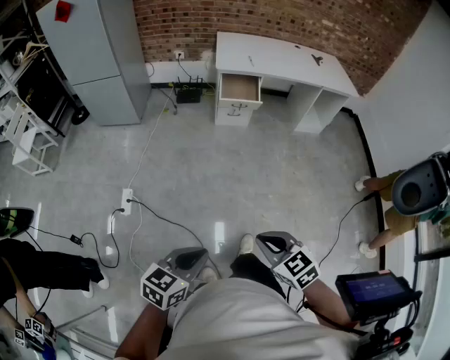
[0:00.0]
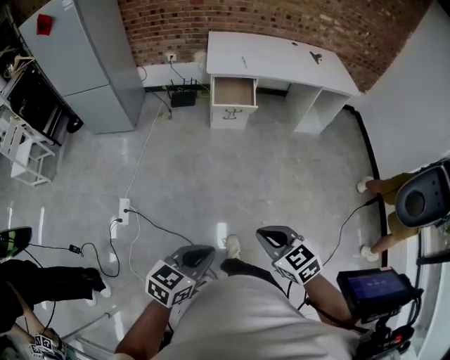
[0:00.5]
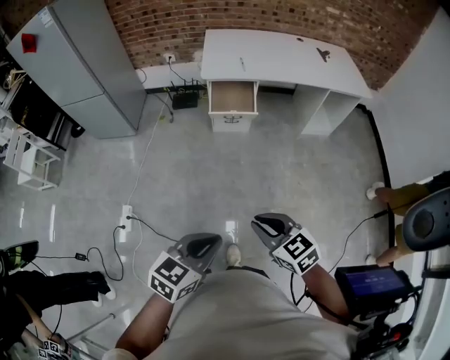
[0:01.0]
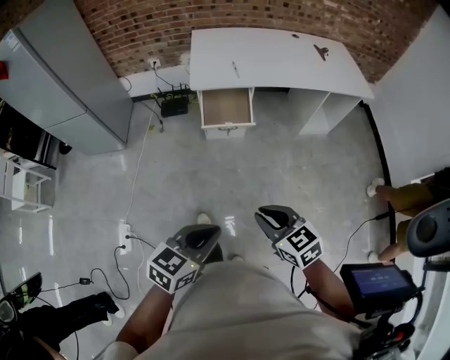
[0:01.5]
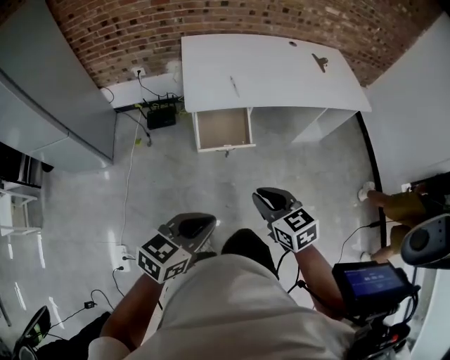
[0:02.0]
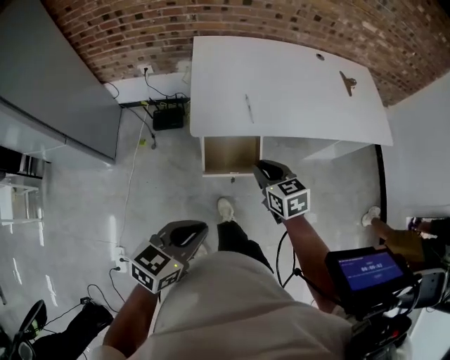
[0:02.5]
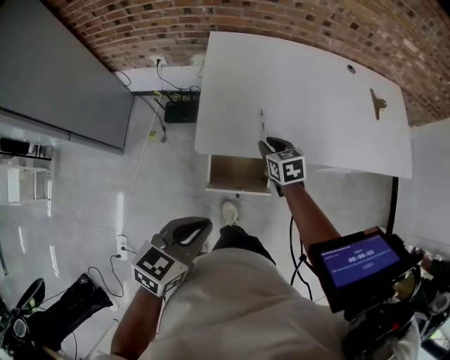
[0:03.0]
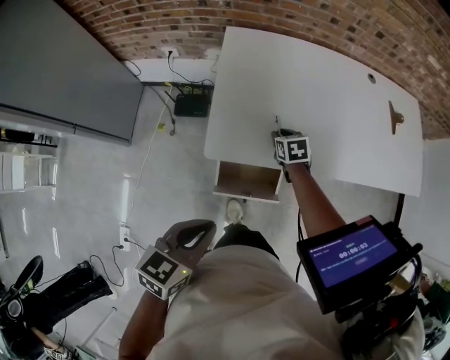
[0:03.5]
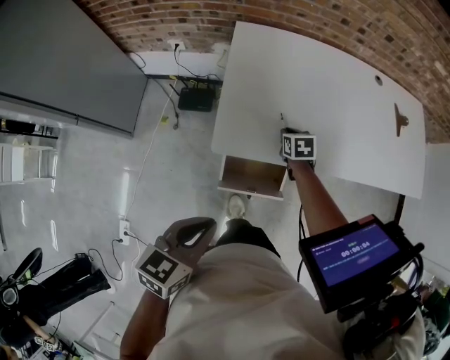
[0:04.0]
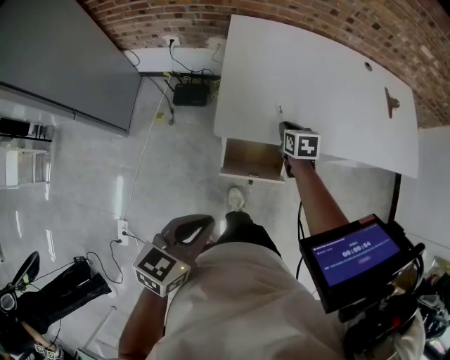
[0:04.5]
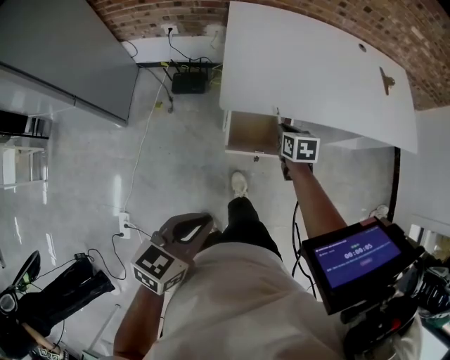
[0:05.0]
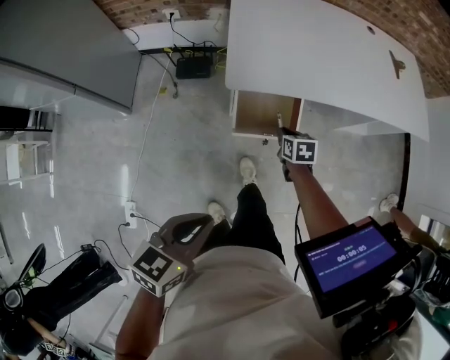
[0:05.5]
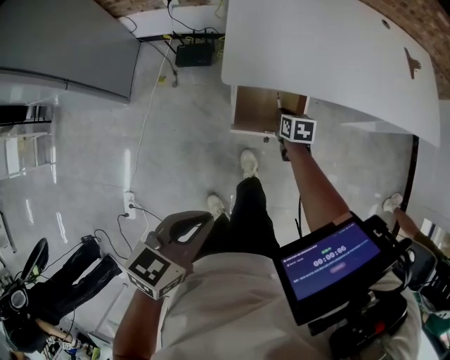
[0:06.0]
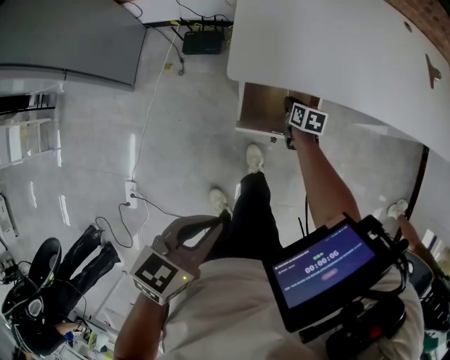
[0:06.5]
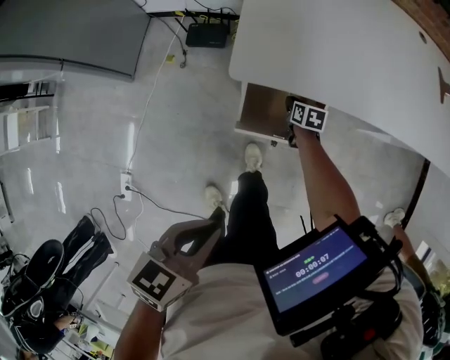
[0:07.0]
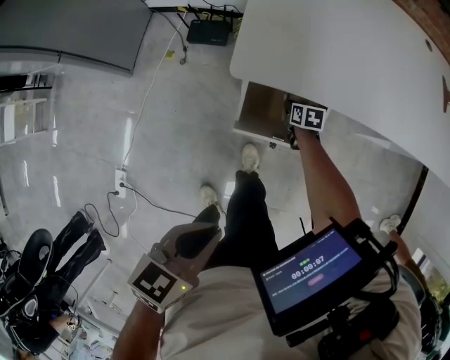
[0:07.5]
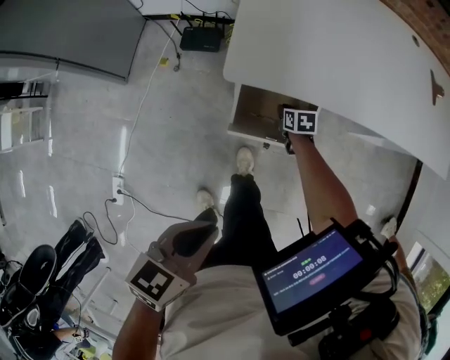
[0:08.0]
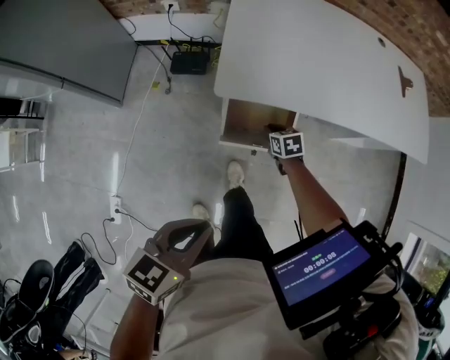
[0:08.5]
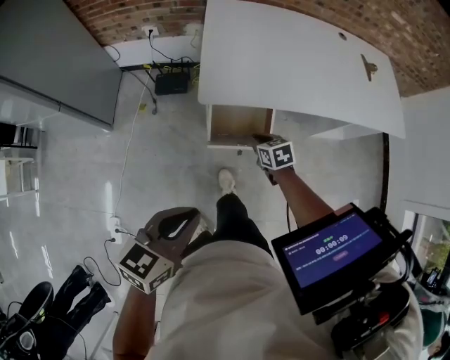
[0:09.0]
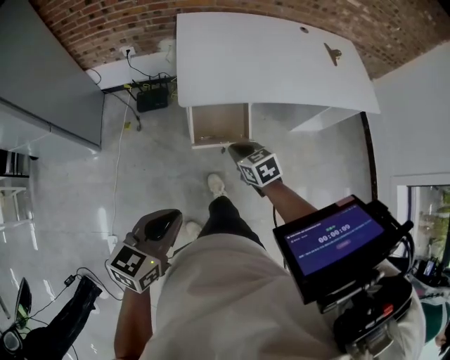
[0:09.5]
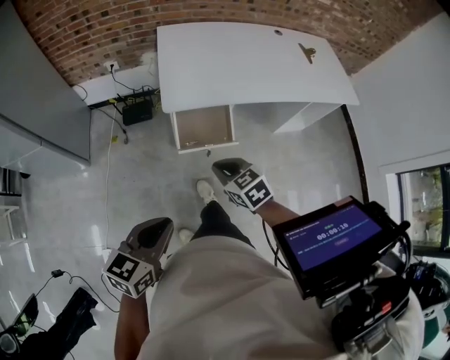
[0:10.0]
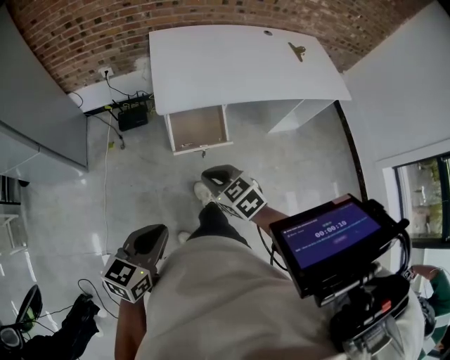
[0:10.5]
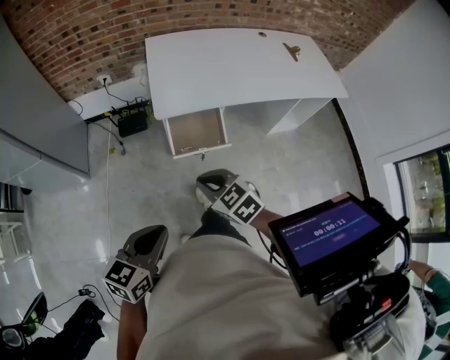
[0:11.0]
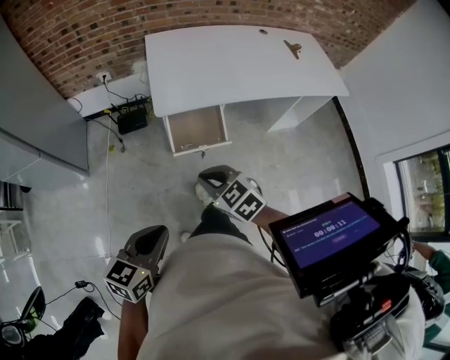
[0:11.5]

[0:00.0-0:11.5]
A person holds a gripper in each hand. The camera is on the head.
0:00.0 to 0:02.0: Both grippers are carried forward, about 60 cm.
0:02.0 to 0:04.0: The right gripper shifts about 60 cm forward, and rotates approximately 20 degrees, while the left gripper moves forward, approximately 30 cm, and turns by roughly 30 degrees.
0:04.0 to 0:06.0: The left gripper heads backward, covering about 15 cm. The right gripper is displaced backward and downward by about 20 cm.
0:06.0 to 0:07.5: The left gripper heads to the right, covering approximately 5 cm. Meanwhile the right gripper shifts about 15 cm downward and forward.
0:07.5 to 0:09.5: The right gripper shifts roughly 40 cm upward and backward, and swivels some 30 degrees. The left gripper is displaced upward, backward and to the left by about 15 cm.
0:09.5 to 0:11.5: The right gripper heads backward, upward and to the left, covering some 15 cm.
